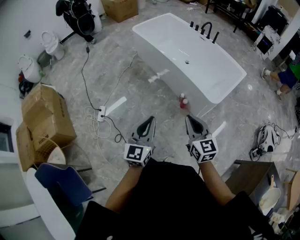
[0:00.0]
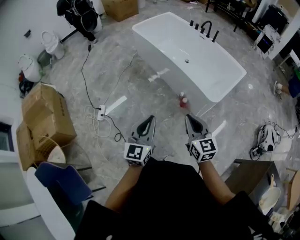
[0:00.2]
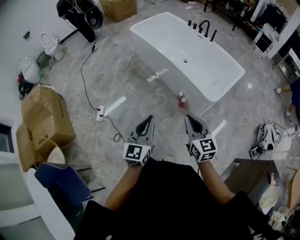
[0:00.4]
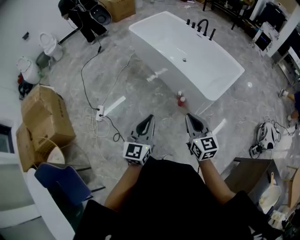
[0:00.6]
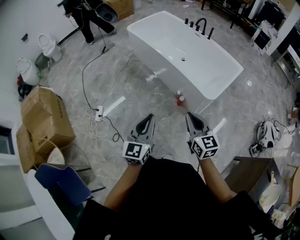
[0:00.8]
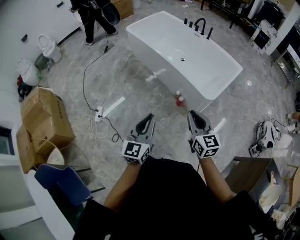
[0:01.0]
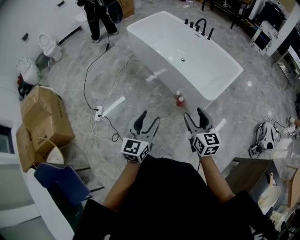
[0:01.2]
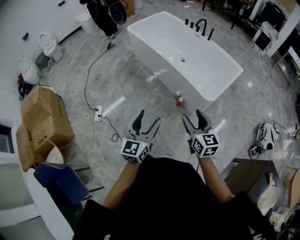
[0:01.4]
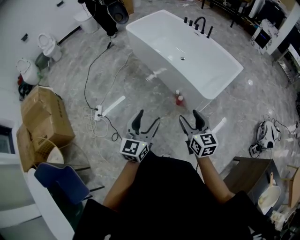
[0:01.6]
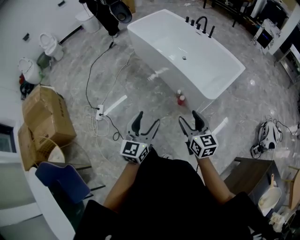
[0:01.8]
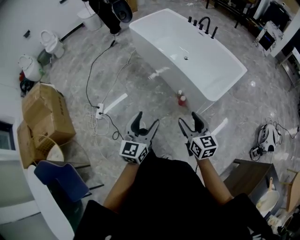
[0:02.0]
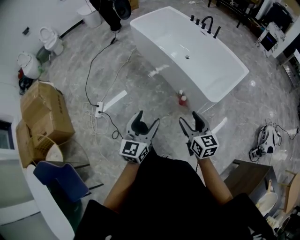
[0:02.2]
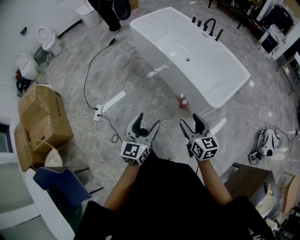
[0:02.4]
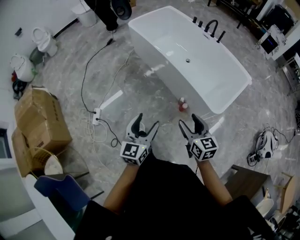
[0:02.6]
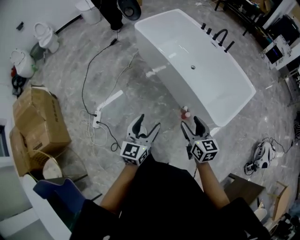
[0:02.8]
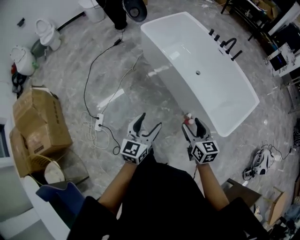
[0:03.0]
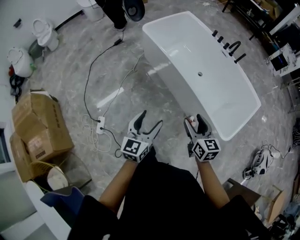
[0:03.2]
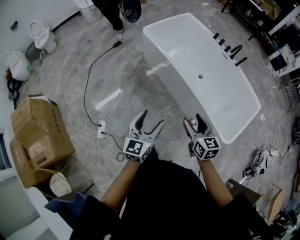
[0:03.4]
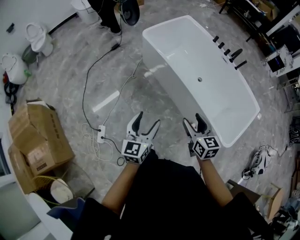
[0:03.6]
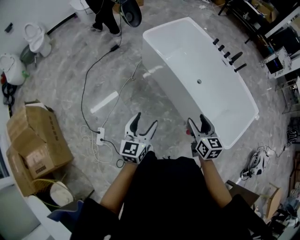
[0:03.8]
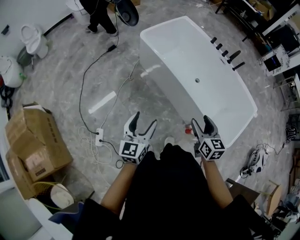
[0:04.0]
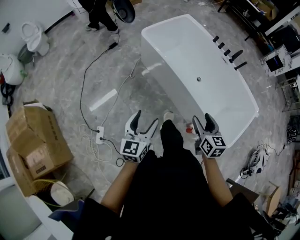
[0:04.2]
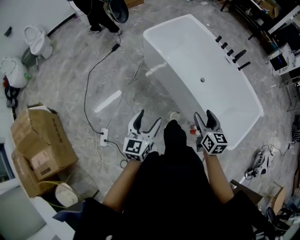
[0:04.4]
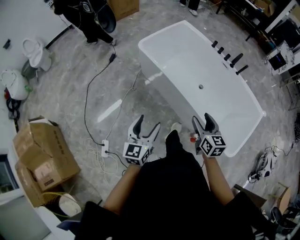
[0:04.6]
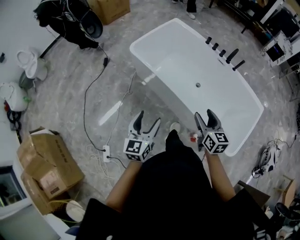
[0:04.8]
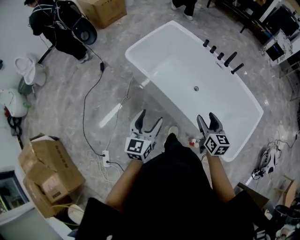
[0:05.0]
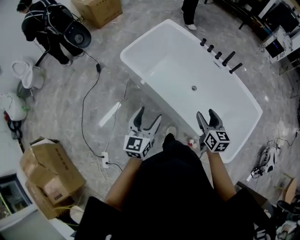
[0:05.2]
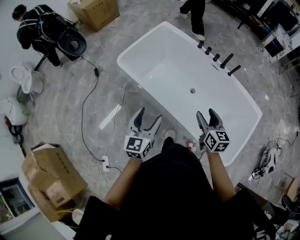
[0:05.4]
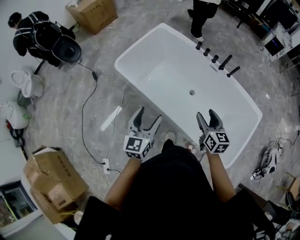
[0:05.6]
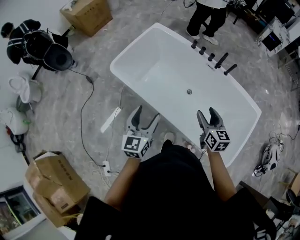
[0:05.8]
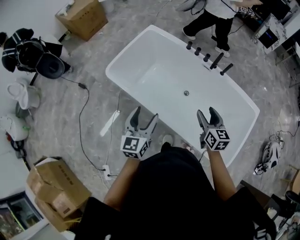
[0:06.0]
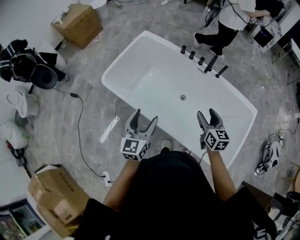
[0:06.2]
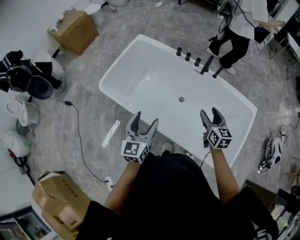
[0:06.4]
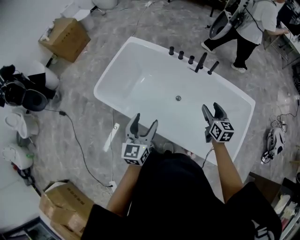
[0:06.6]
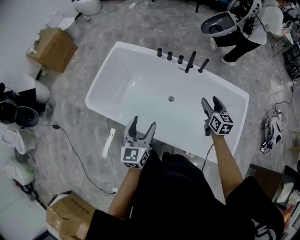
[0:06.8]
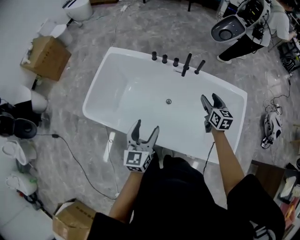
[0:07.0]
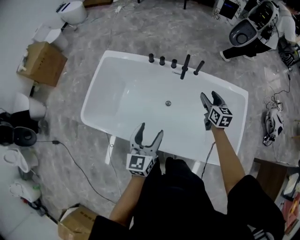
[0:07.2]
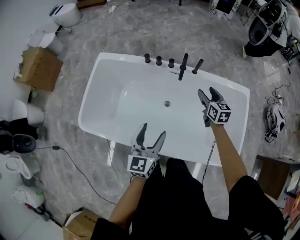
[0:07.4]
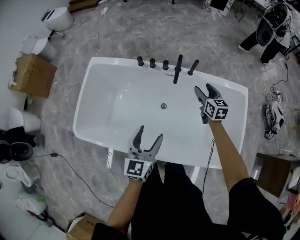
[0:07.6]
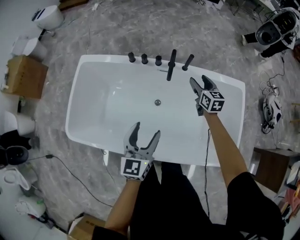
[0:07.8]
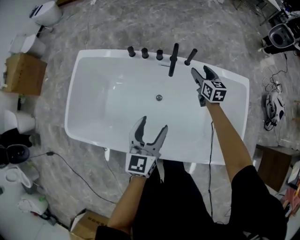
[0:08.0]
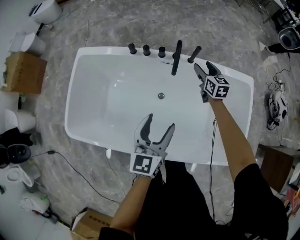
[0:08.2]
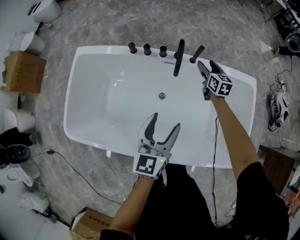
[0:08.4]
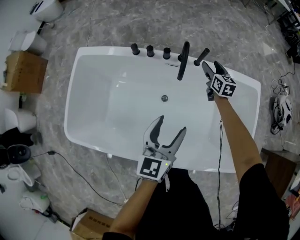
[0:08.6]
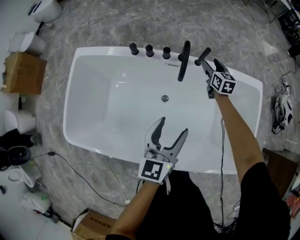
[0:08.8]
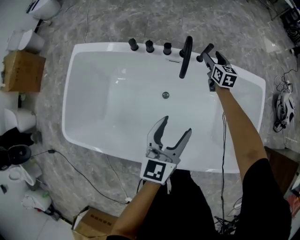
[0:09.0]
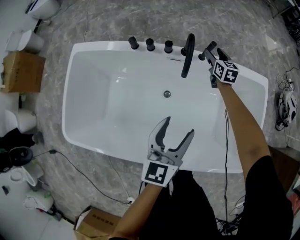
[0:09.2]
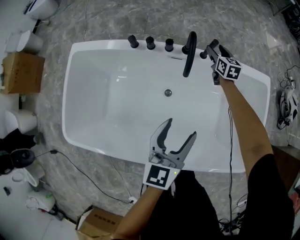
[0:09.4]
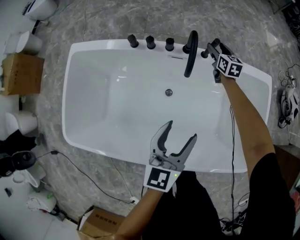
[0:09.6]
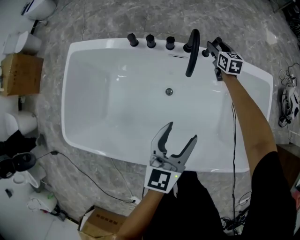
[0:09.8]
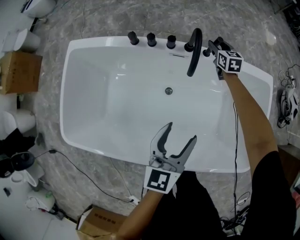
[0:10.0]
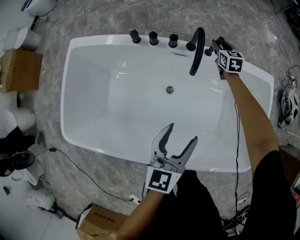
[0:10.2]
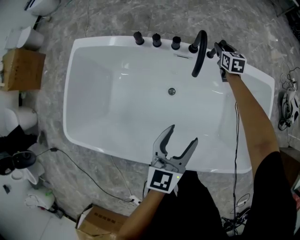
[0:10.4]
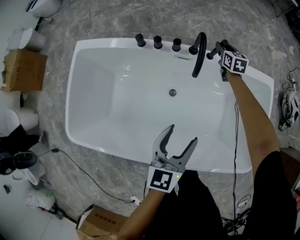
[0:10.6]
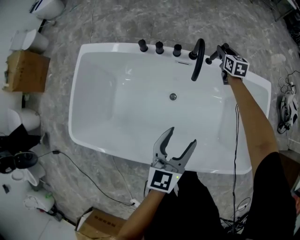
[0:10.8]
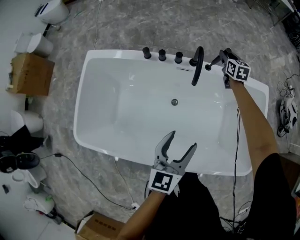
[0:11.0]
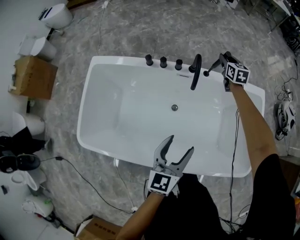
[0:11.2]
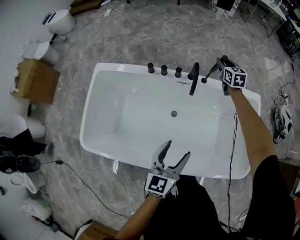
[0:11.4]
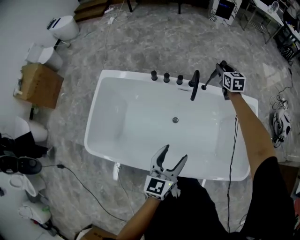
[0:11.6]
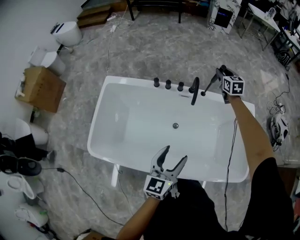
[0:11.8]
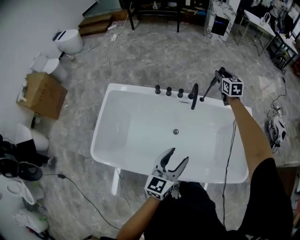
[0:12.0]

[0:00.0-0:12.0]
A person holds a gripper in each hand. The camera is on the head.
0:00.0 to 0:01.6: The grippers both shift to the right by some 5 cm. The left gripper opens; the right gripper opens up.
0:01.6 to 0:03.0: The two grippers go roughly 35 cm forward and to the left.
0:03.0 to 0:04.4: The right gripper travels forward by roughly 20 cm, while the left gripper moves forward and to the left, roughly 25 cm.
0:04.4 to 0:06.0: Both grippers move forward and to the right, some 40 cm.
0:06.0 to 0:07.6: The left gripper shifts by roughly 25 cm, and rotates about 30 degrees; the right gripper shifts by approximately 35 cm, and turns by approximately 20 degrees.
0:07.6 to 0:09.0: The left gripper travels forward, downward and to the right by some 15 cm, while the right gripper travels forward and downward by roughly 25 cm.
0:09.0 to 0:10.4: The right gripper shifts by about 5 cm, and closes its fingers.
0:10.4 to 0:12.0: The right gripper moves upward, roughly 35 cm. Meanwhile the left gripper travels upward and backward by some 20 cm.

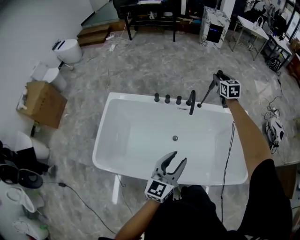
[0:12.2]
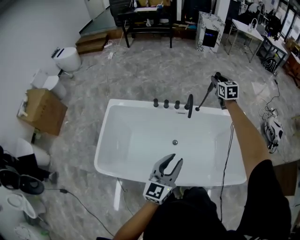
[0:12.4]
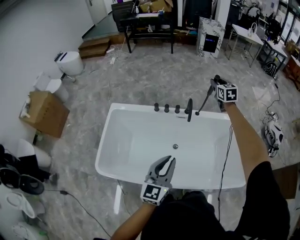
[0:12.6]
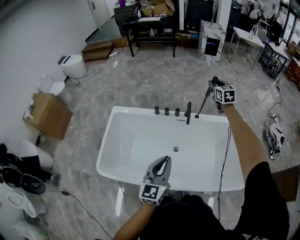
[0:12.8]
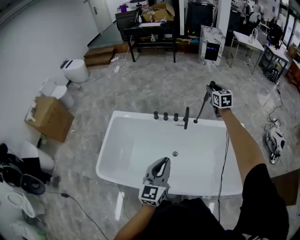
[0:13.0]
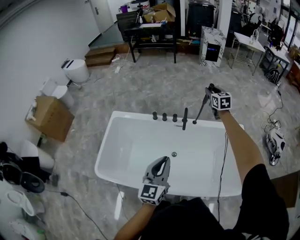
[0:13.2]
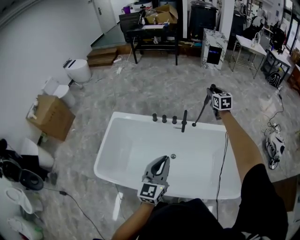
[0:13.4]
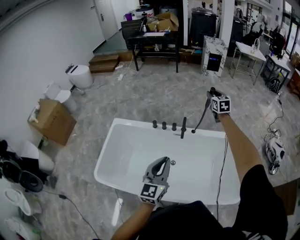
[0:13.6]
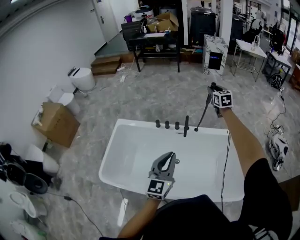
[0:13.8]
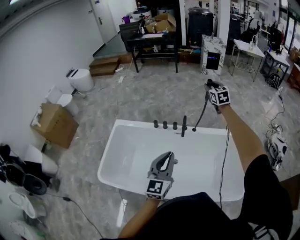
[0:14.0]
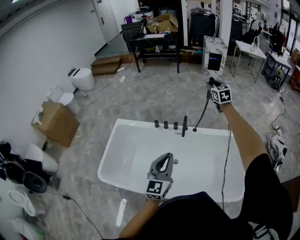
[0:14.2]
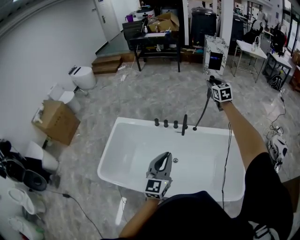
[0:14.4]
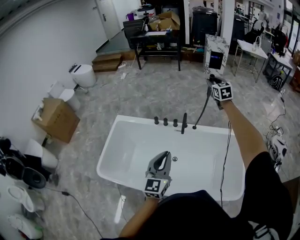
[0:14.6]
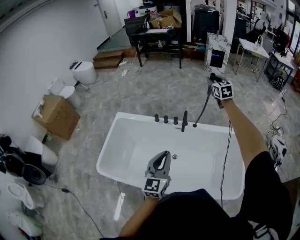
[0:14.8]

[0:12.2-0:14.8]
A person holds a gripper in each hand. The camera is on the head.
0:12.2 to 0:13.4: Both grippers travel together upward, some 10 cm. The left gripper closes its fingers.
0:13.4 to 0:14.8: The right gripper moves upward, approximately 10 cm.

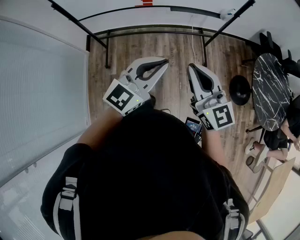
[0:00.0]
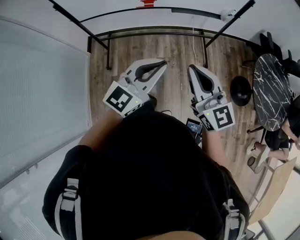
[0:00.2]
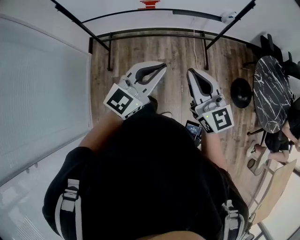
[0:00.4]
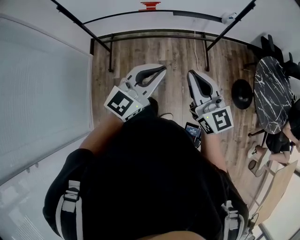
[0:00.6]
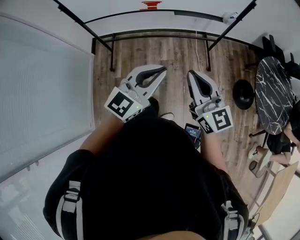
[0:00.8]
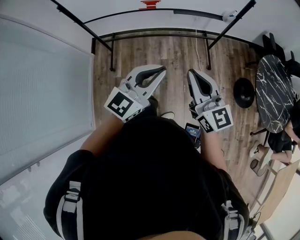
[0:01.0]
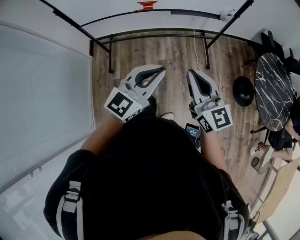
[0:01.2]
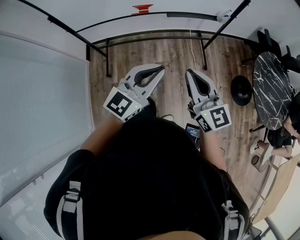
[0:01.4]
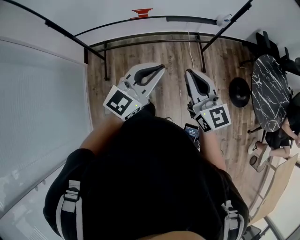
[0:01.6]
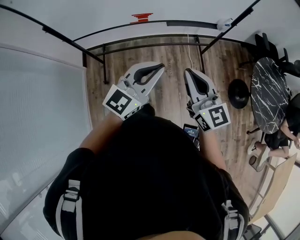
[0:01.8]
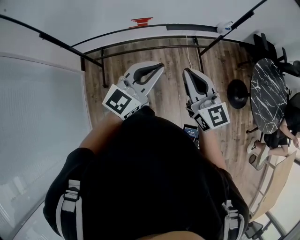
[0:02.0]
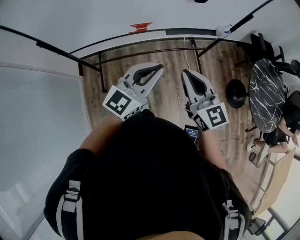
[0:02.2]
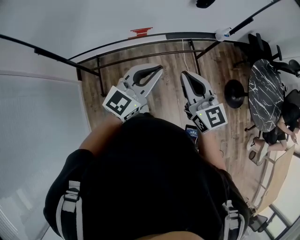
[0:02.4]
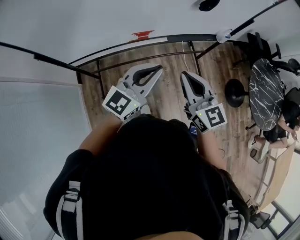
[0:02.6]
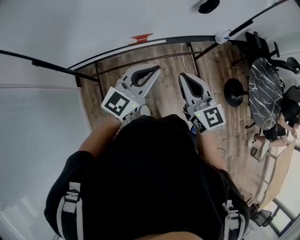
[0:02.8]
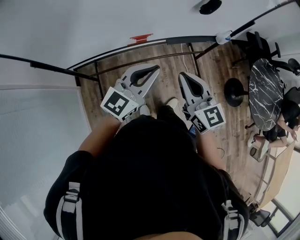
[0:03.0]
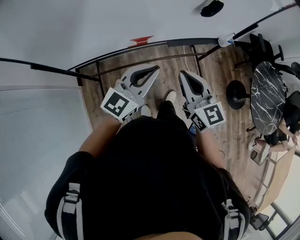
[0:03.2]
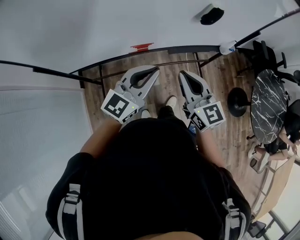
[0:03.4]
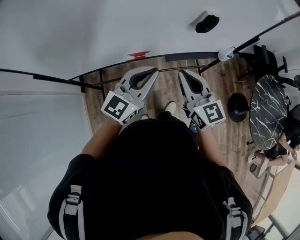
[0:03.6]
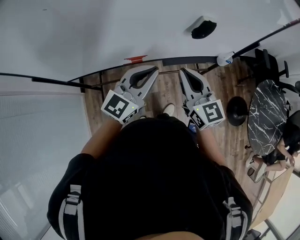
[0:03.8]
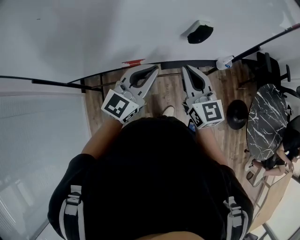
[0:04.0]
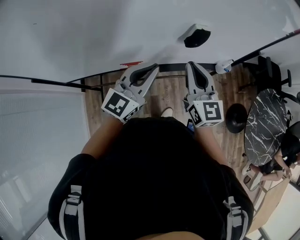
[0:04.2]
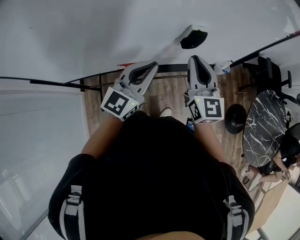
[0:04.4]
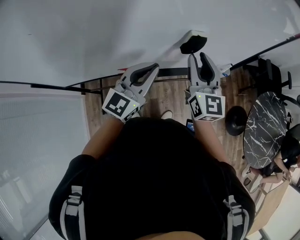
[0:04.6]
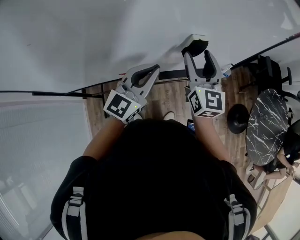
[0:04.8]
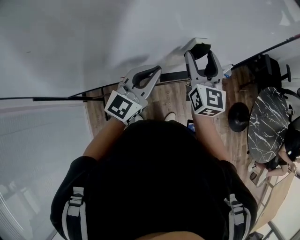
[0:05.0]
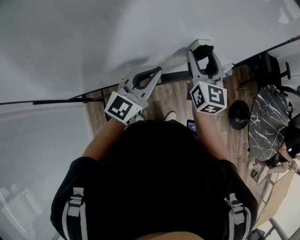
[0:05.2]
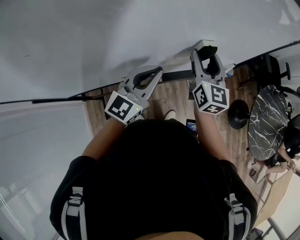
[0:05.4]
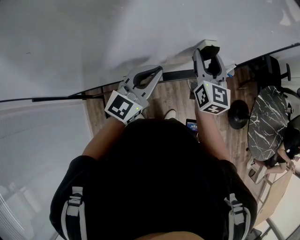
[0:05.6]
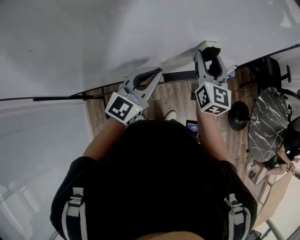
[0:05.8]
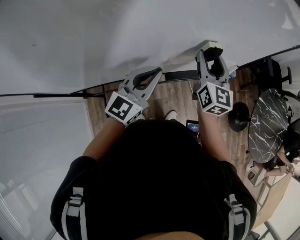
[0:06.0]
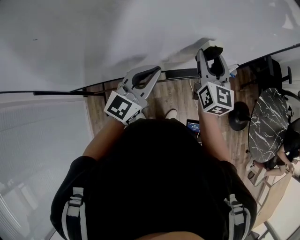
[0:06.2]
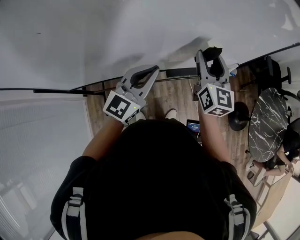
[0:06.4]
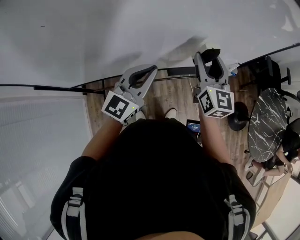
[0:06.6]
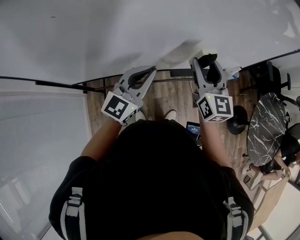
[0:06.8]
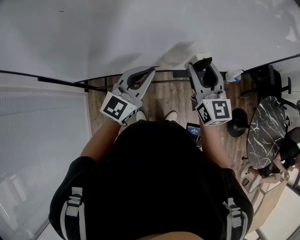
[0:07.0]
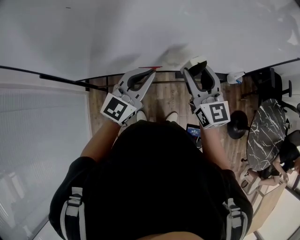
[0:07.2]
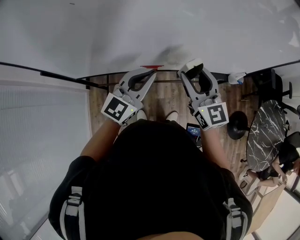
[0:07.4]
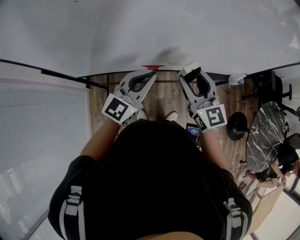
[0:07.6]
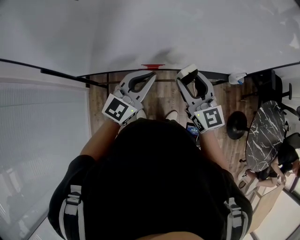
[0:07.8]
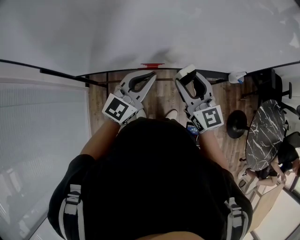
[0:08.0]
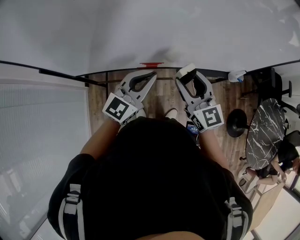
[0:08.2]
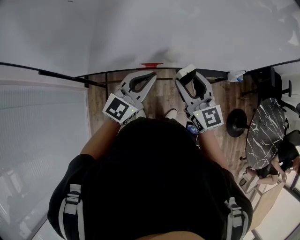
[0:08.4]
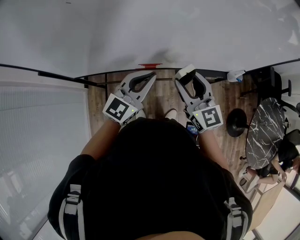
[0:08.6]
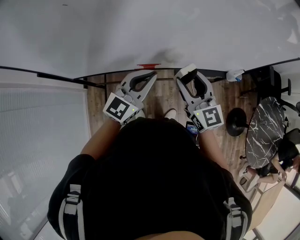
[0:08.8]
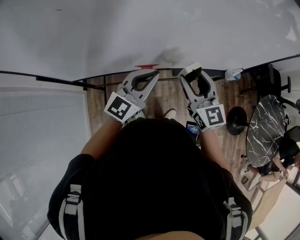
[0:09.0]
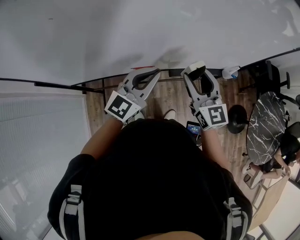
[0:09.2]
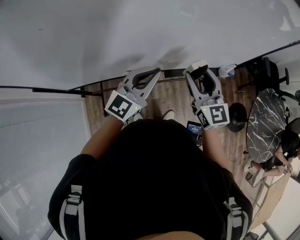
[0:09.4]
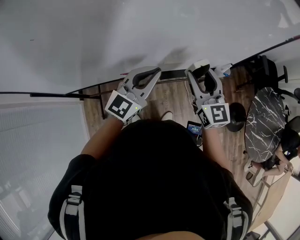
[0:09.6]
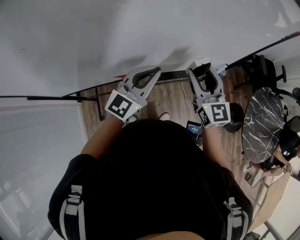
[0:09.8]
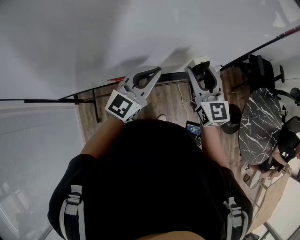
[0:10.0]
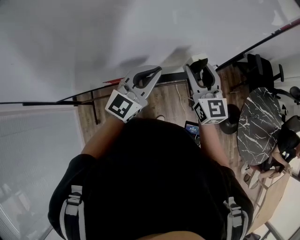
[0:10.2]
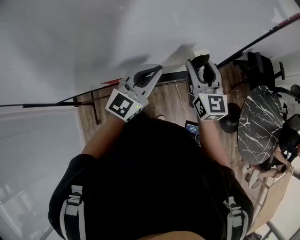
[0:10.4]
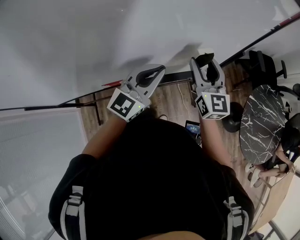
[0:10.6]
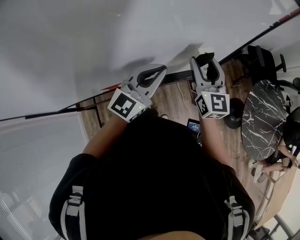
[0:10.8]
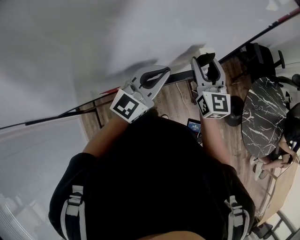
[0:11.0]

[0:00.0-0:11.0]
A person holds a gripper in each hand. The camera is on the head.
0:00.0 to 0:01.6: Both grippers travel together forward, roughly 5 cm.
0:01.6 to 0:03.2: Both grippers move forward and to the left, about 25 cm.
0:03.2 to 0:04.8: The grippers both shift forward by some 25 cm. The right gripper opens up.
0:04.8 to 0:06.2: The grippers stay close to where they were, moving slightly.
0:06.2 to 0:07.8: The left gripper heads to the left and backward, covering some 10 cm, while the right gripper shifts some 20 cm to the left and backward, and turns by roughly 30 degrees.
0:07.8 to 0:09.4: The grippers both shift to the right by about 10 cm.
0:09.4 to 0:11.0: Both grippers travel together to the right and forward, roughly 20 cm.
